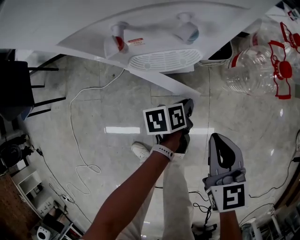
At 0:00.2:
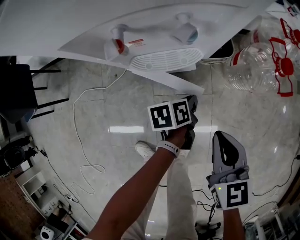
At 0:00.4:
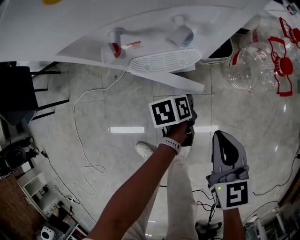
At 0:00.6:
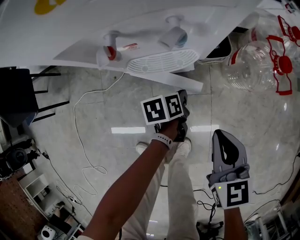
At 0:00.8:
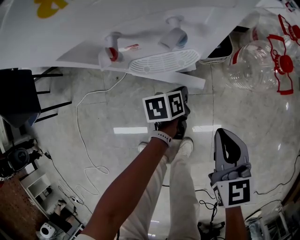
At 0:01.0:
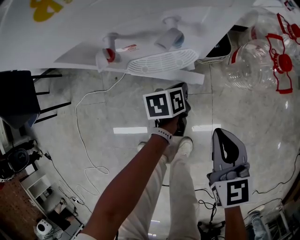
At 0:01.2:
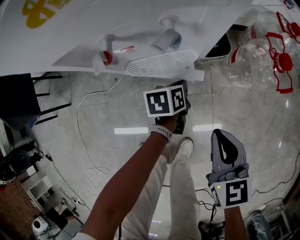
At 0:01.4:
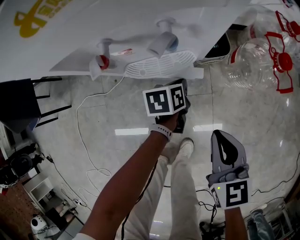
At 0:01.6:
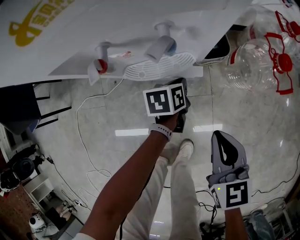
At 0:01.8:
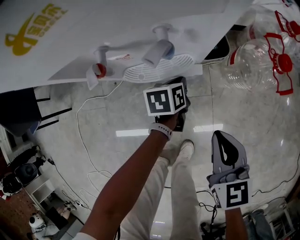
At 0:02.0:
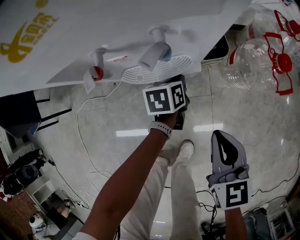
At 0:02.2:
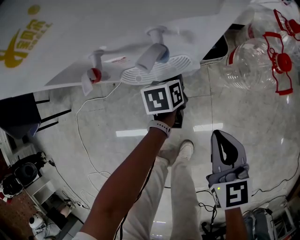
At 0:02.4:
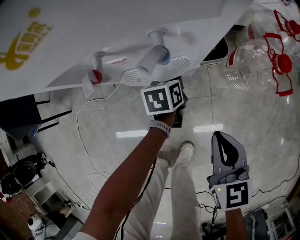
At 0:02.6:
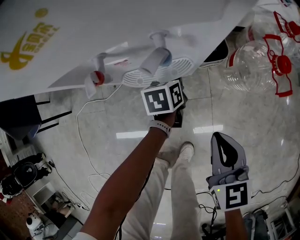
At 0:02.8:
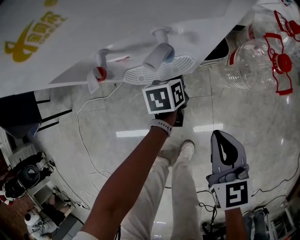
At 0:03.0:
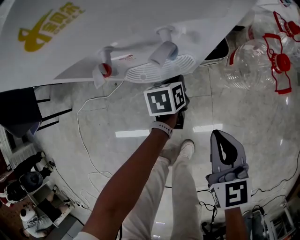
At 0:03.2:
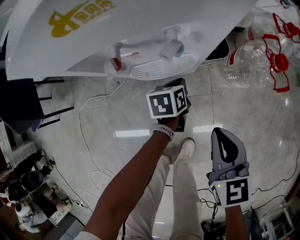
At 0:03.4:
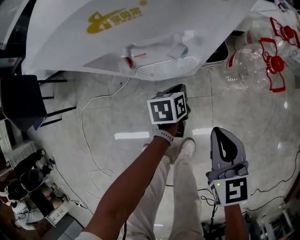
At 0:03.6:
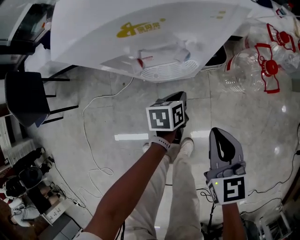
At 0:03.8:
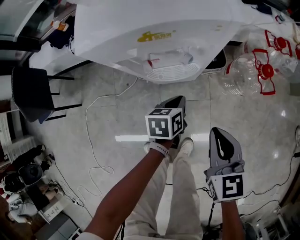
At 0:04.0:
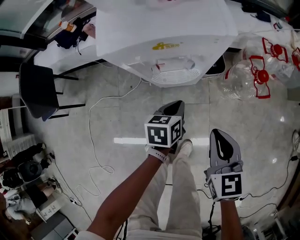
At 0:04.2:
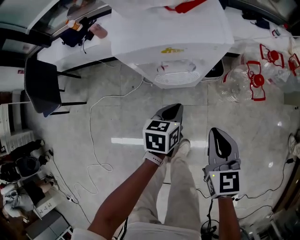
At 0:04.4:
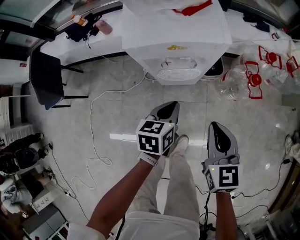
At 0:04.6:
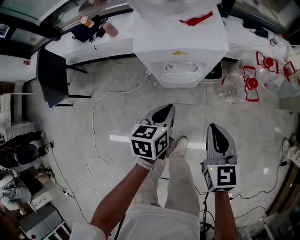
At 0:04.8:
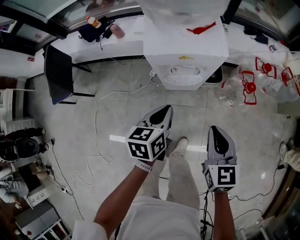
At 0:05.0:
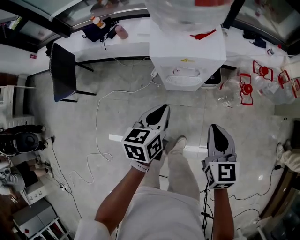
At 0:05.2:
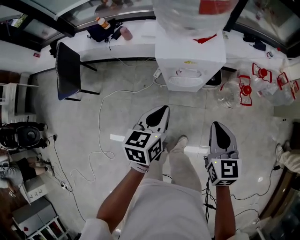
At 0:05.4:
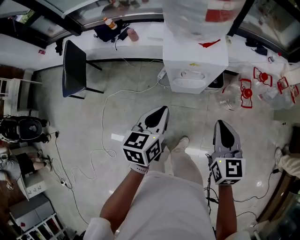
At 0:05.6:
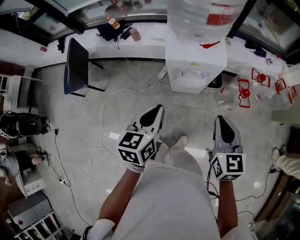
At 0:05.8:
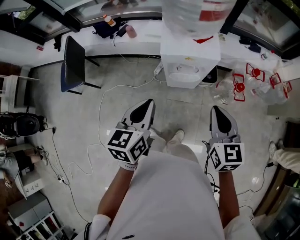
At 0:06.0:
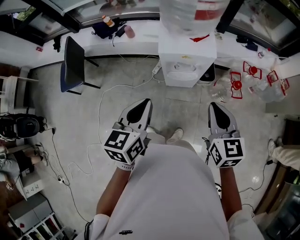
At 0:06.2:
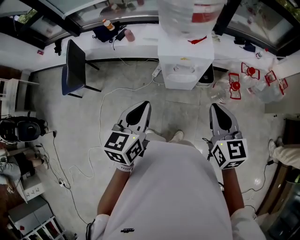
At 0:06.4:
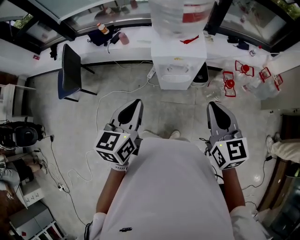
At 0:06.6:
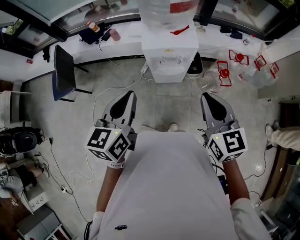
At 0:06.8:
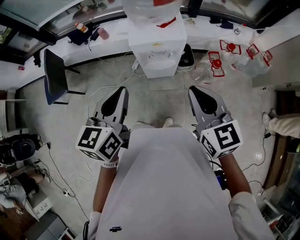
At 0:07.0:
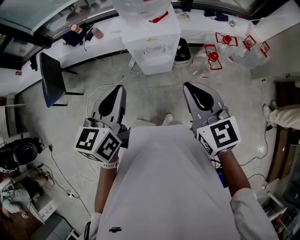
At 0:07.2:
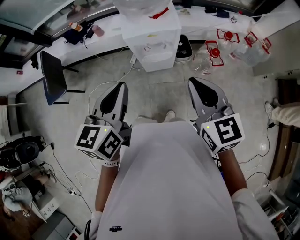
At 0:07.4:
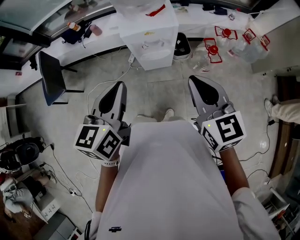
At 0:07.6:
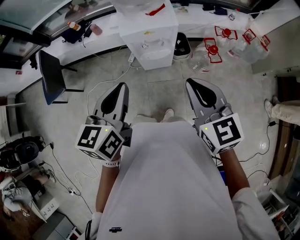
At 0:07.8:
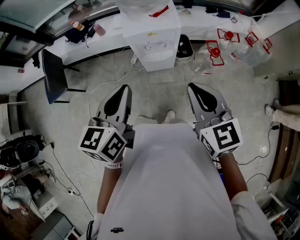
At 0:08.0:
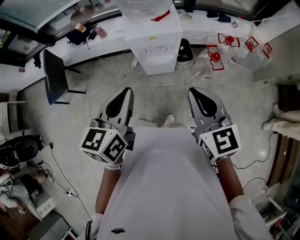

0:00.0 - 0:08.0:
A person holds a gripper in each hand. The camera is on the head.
0:00.0 - 0:01.6: The left gripper shifts approximately 10 cm forward.
0:01.6 - 0:03.2: There are only small adjustments of the grippers.
0:03.2 - 0:04.8: The right gripper shifts approximately 25 cm upward. Meanwhile the left gripper is displaced upward by about 40 cm.
0:04.8 - 0:06.4: Both grippers move upward, approximately 25 cm.
0:06.4 - 0:08.0: The right gripper moves backward, about 5 cm; the left gripper shifts some 5 cm to the right.

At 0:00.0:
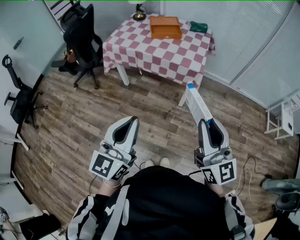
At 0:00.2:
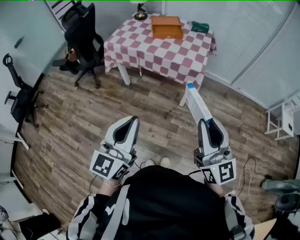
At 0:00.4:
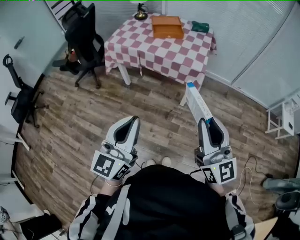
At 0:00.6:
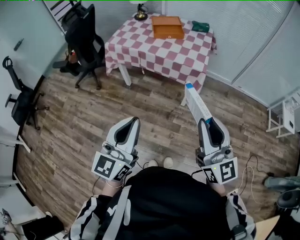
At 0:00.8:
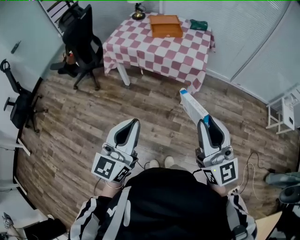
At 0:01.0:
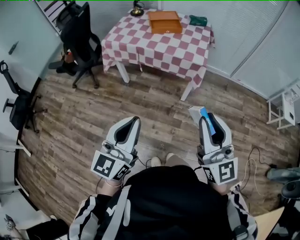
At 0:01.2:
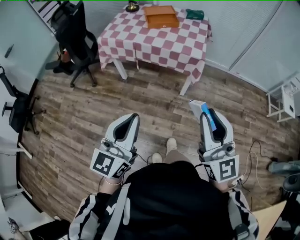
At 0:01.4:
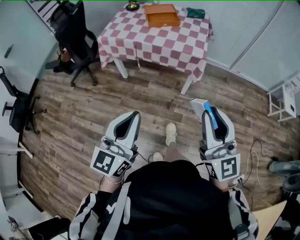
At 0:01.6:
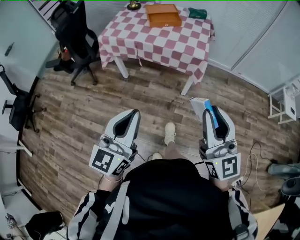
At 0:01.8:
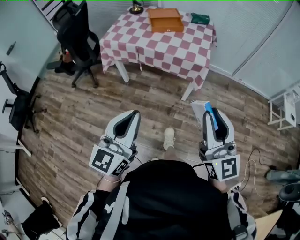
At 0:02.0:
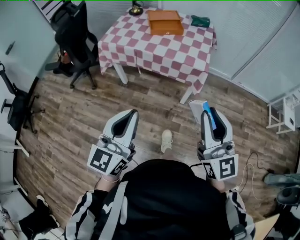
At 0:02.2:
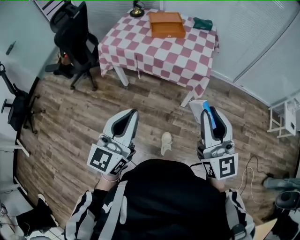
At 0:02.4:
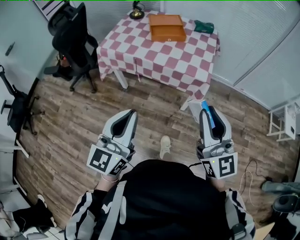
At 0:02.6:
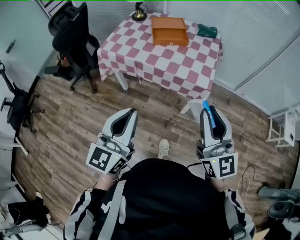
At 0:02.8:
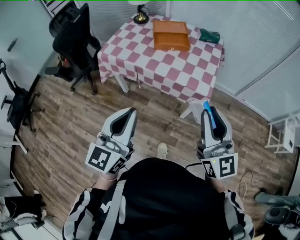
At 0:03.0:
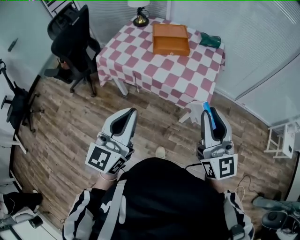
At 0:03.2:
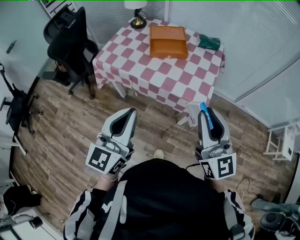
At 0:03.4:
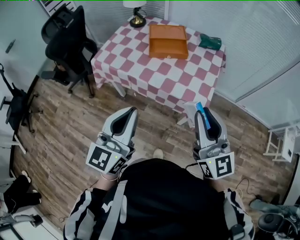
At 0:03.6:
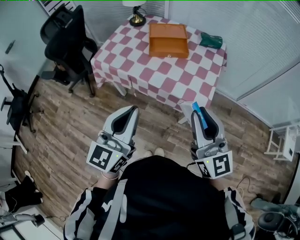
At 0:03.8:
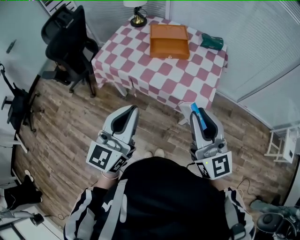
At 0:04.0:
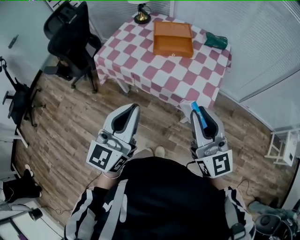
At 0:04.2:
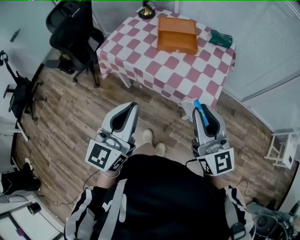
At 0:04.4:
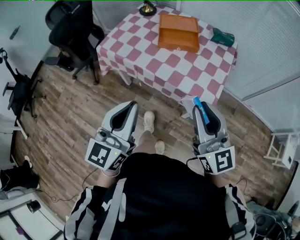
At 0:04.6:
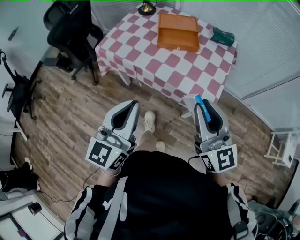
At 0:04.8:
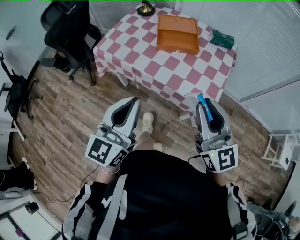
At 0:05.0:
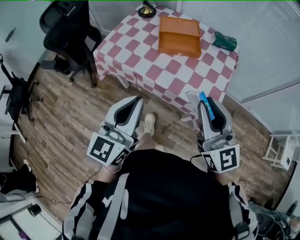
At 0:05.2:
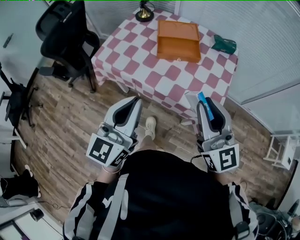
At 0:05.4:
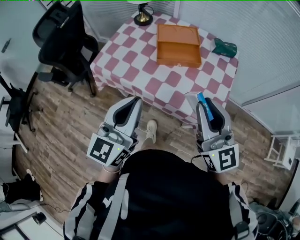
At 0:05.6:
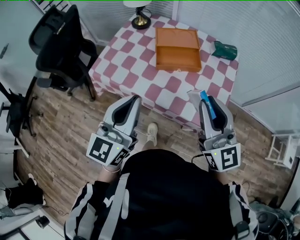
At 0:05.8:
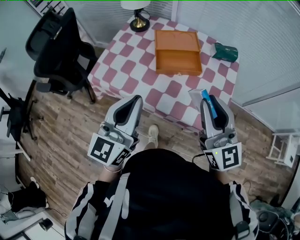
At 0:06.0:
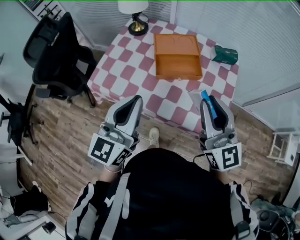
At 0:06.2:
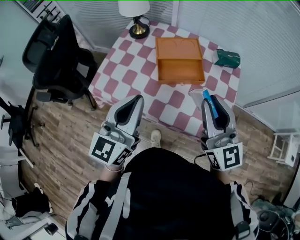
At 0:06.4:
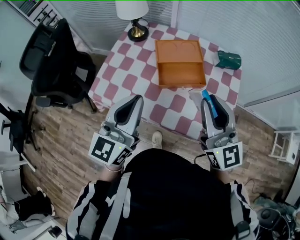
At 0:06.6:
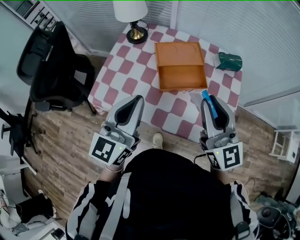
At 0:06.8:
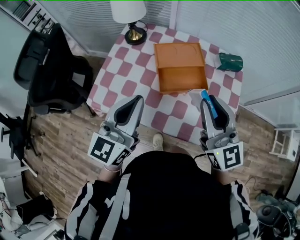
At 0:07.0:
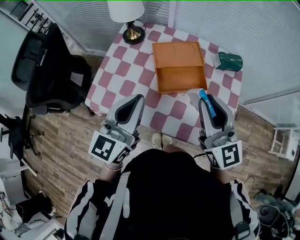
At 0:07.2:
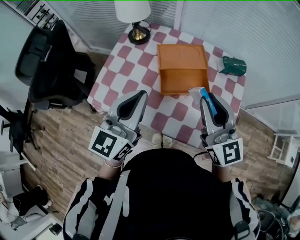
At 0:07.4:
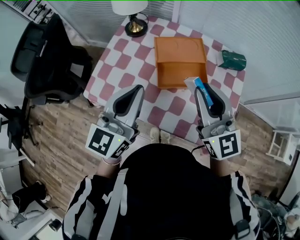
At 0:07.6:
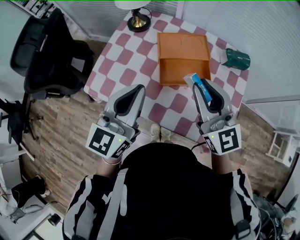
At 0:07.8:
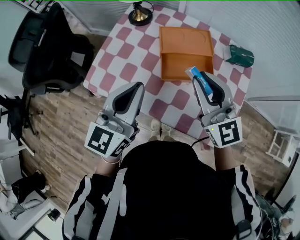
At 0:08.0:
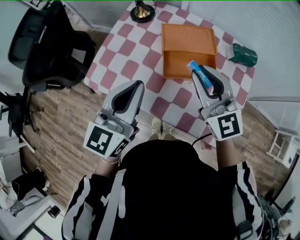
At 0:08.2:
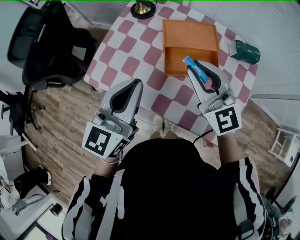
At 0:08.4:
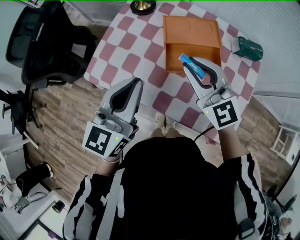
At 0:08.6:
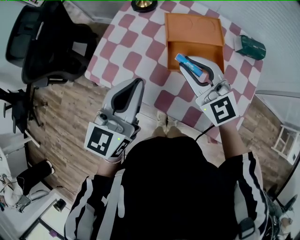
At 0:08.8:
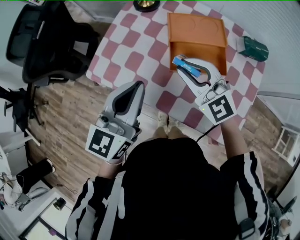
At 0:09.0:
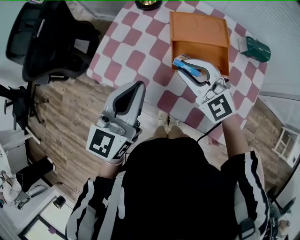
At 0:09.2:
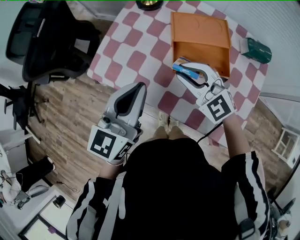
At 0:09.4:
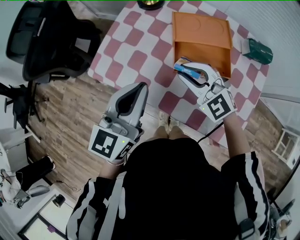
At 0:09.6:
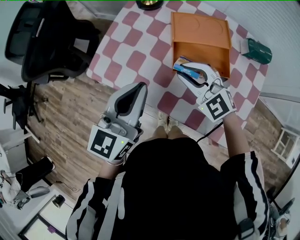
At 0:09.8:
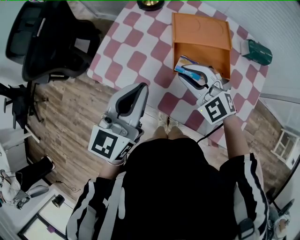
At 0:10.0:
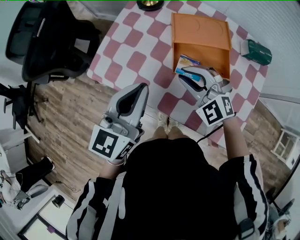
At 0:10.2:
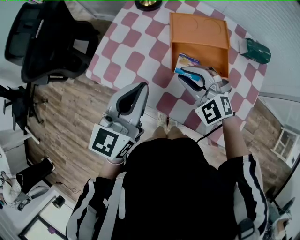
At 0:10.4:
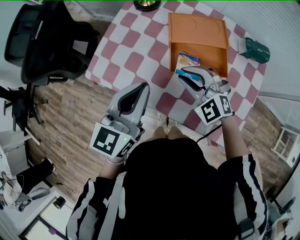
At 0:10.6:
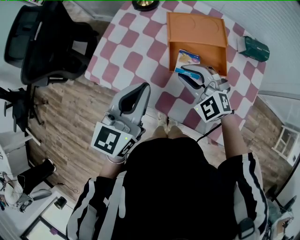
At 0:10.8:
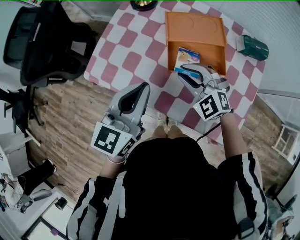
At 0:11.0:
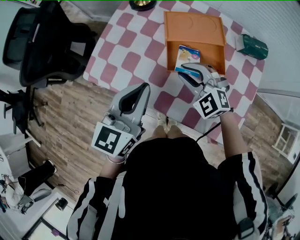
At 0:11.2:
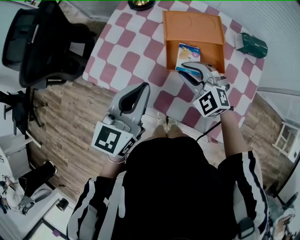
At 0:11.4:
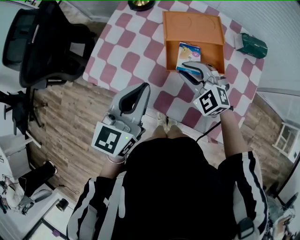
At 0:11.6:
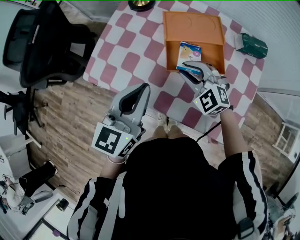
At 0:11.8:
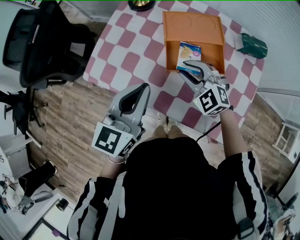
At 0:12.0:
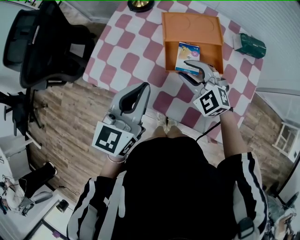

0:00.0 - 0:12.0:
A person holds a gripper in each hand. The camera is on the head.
0:00.0 - 0:01.6: The left gripper moves some 5 cm.
0:01.6 - 0:03.0: Both grippers travel together forward, approximately 25 cm.
0:03.0 - 0:04.4: Both grippers travel together forward, some 5 cm.
0:04.4 - 0:06.0: Both grippers travel together forward, roughly 20 cm.
0:06.0 - 0:07.6: The left gripper moves forward, some 10 cm, while the right gripper shifts some 15 cm forward and to the left.
0:07.6 - 0:09.0: The right gripper shifts some 15 cm downward and to the left, and rotates approximately 40 degrees. Meanwhile the left gripper moves roughly 5 cm.
0:09.0 - 0:10.4: The right gripper goes about 5 cm downward.
0:10.4 - 0:12.0: The grippers move only a little.

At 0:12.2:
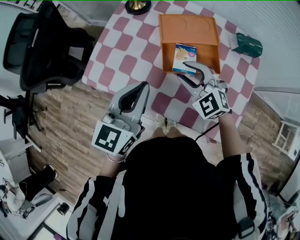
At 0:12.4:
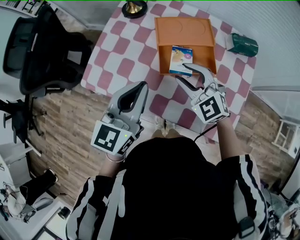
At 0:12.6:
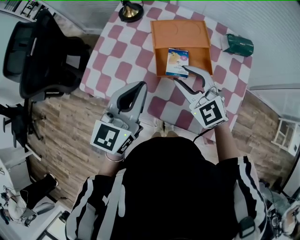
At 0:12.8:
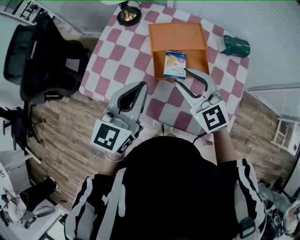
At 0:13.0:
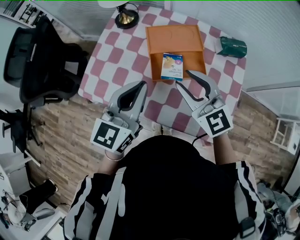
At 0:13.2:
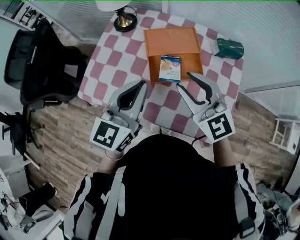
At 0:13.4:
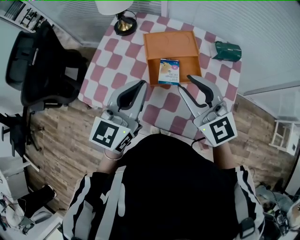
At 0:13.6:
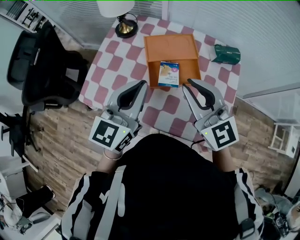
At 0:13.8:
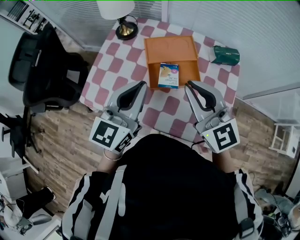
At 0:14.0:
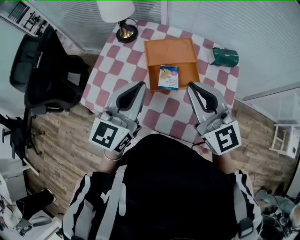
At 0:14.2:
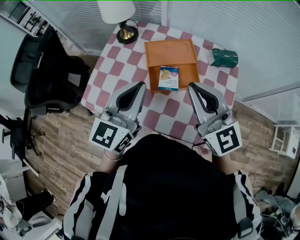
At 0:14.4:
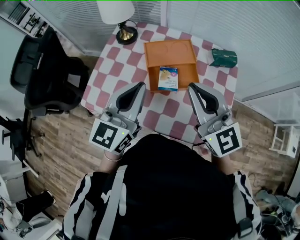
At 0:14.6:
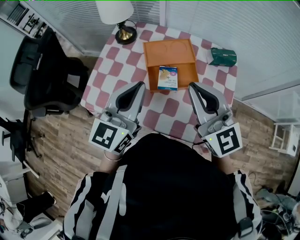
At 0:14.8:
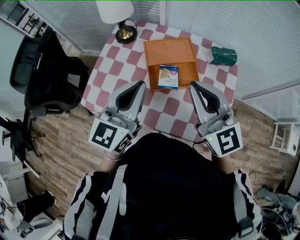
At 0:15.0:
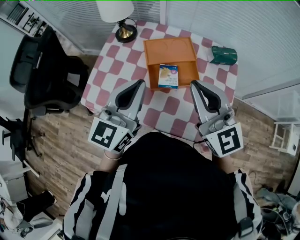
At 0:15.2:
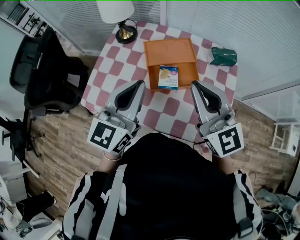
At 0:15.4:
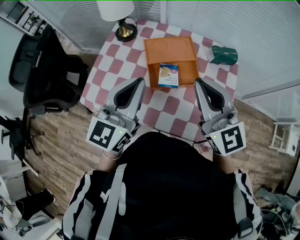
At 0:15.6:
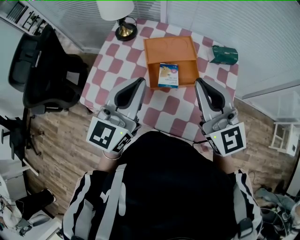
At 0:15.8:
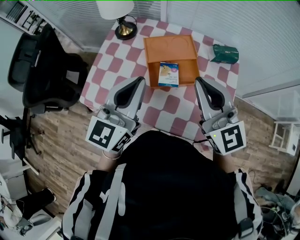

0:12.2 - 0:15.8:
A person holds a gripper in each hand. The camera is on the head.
0:12.2 - 0:14.0: The right gripper travels upward by roughly 20 cm, tips its fingers upward by about 30 degrees, and closes up. The left gripper goes roughly 5 cm upward.
0:14.0 - 0:15.8: The grippers stay close to where they were, moving slightly.
